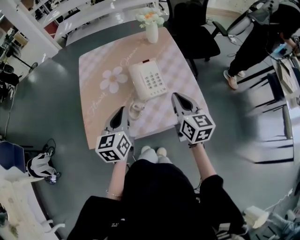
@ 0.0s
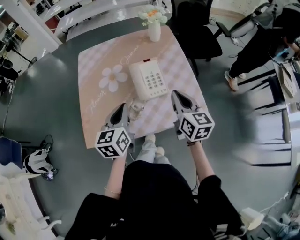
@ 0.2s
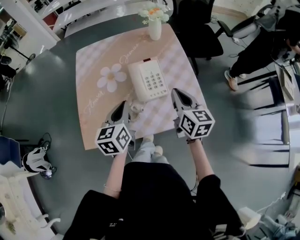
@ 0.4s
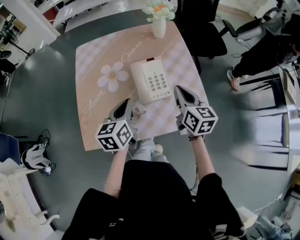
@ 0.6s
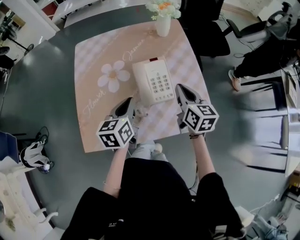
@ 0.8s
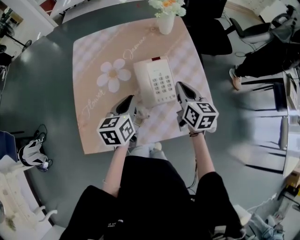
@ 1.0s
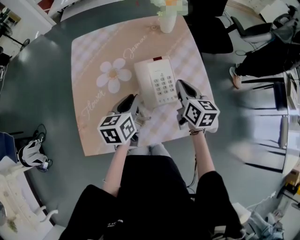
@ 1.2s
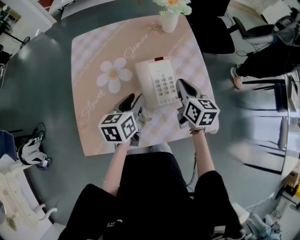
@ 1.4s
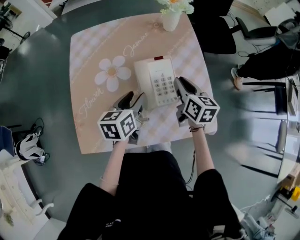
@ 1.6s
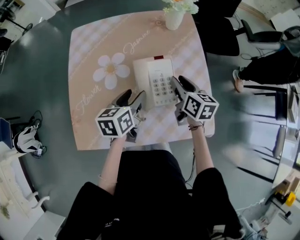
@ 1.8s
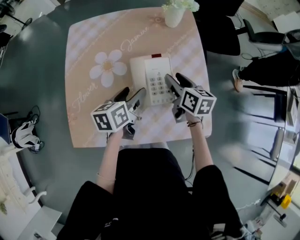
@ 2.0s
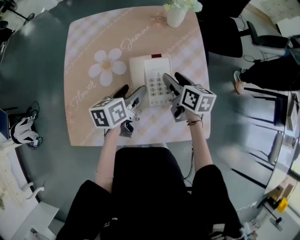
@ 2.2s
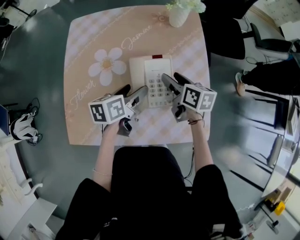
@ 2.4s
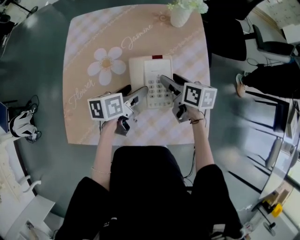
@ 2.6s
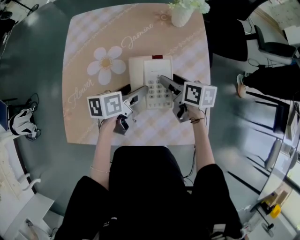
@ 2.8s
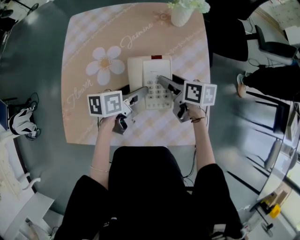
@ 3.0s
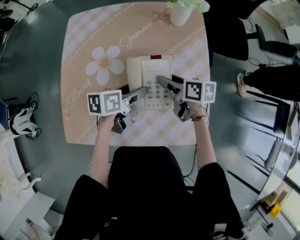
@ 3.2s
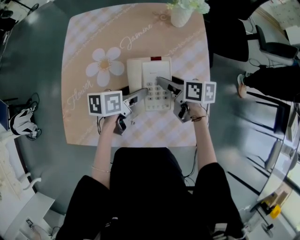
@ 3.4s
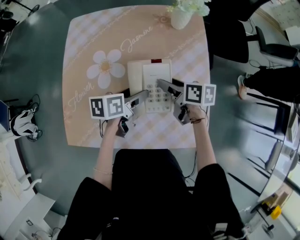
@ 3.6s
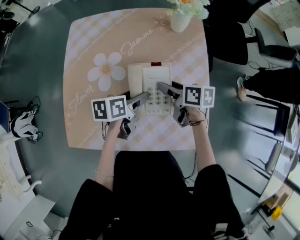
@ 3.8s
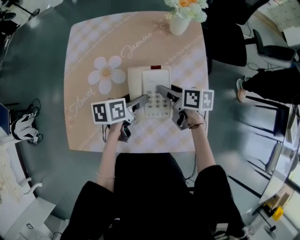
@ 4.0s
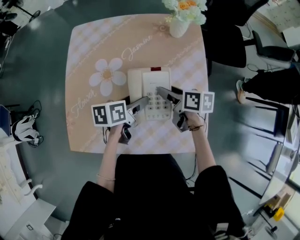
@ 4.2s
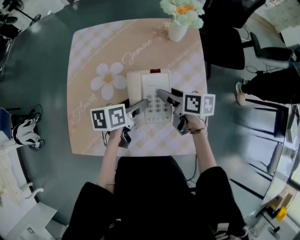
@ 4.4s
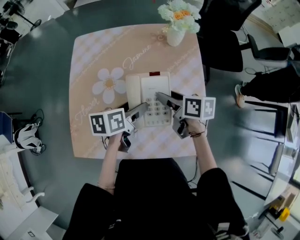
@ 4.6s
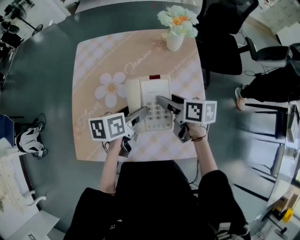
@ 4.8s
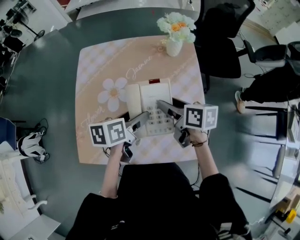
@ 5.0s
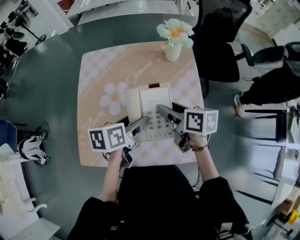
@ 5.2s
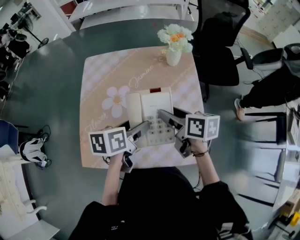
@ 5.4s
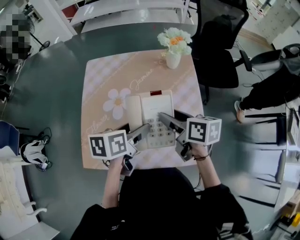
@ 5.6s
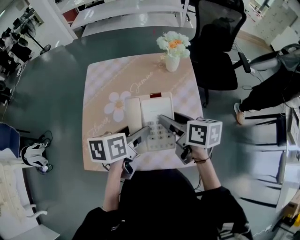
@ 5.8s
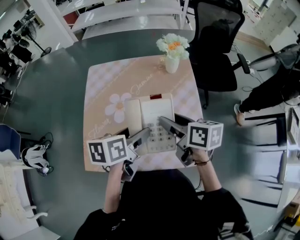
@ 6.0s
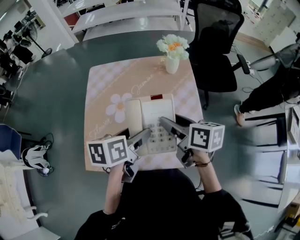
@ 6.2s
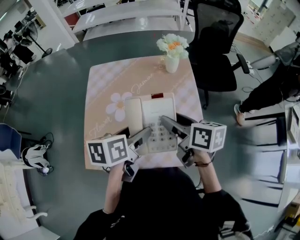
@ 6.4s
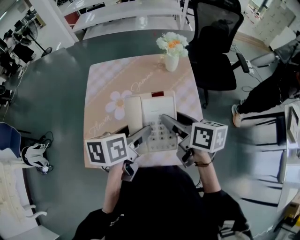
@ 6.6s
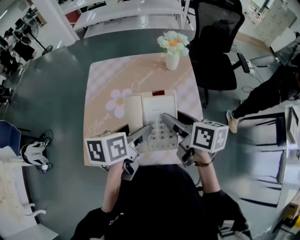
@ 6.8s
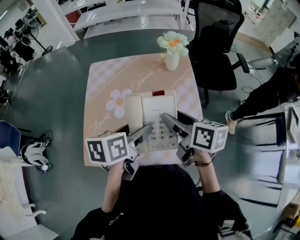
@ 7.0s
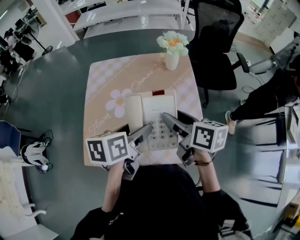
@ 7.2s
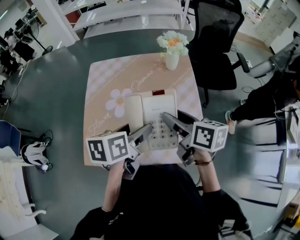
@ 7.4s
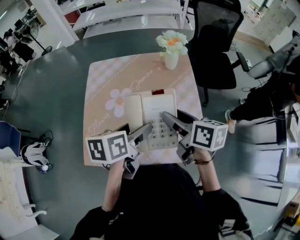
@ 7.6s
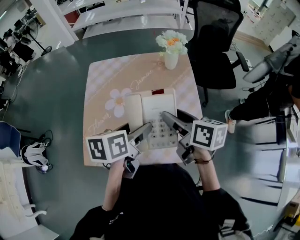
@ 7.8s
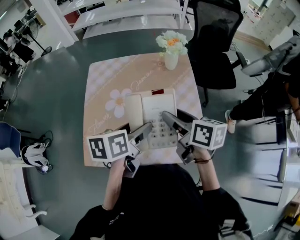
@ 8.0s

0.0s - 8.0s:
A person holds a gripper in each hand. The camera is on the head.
0.0s - 1.6s: The two grippers go about 20 cm forward and downward. The left gripper changes its angle by about 20 degrees, and opens up.
1.6s - 3.2s: Both grippers travel together downward, approximately 5 cm. The right gripper changes its angle by some 40 degrees, and opens; the left gripper turns by about 20 degrees, and opens.
3.2s - 4.8s: The two grippers go approximately 10 cm upward.
4.8s - 6.4s: The grippers both shift upward by some 5 cm.
6.4s - 8.0s: Both grippers stay about where they are.

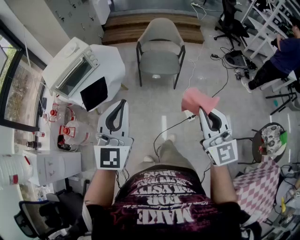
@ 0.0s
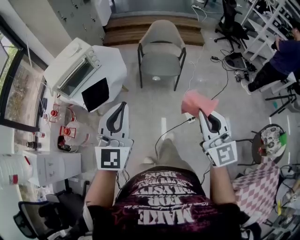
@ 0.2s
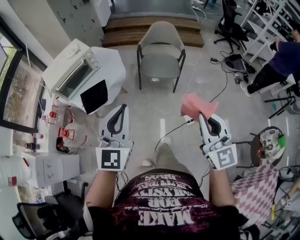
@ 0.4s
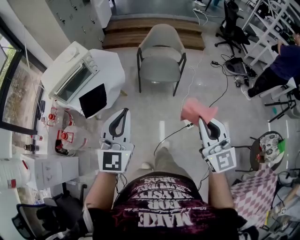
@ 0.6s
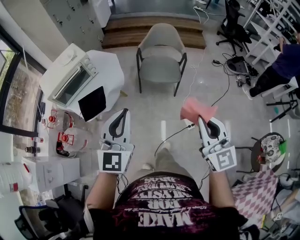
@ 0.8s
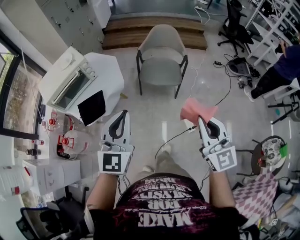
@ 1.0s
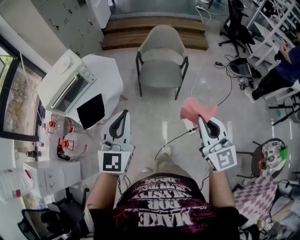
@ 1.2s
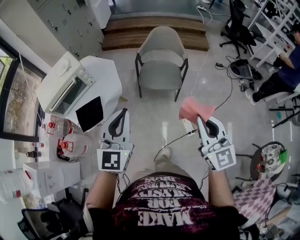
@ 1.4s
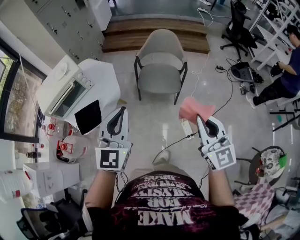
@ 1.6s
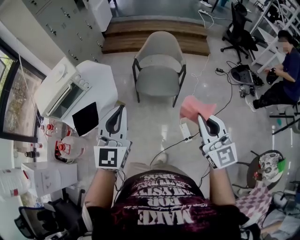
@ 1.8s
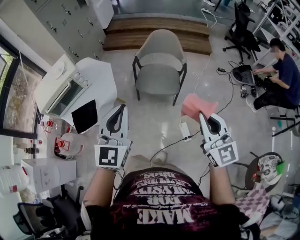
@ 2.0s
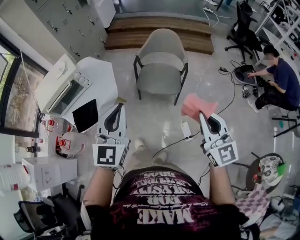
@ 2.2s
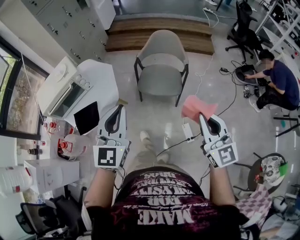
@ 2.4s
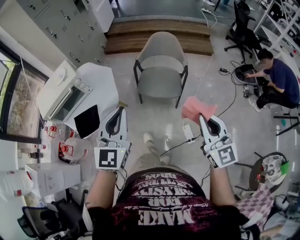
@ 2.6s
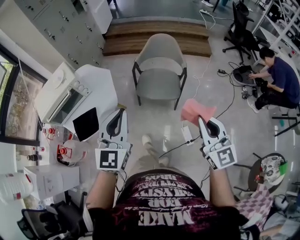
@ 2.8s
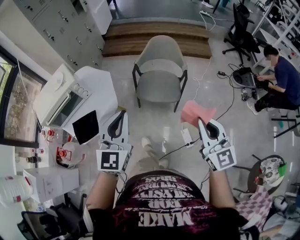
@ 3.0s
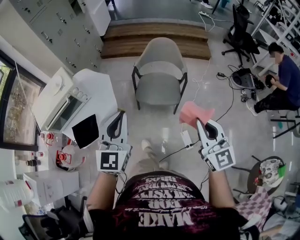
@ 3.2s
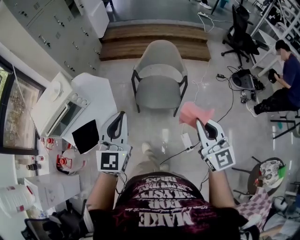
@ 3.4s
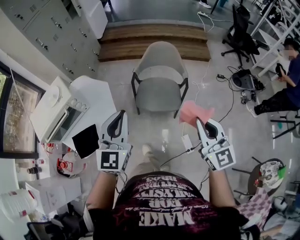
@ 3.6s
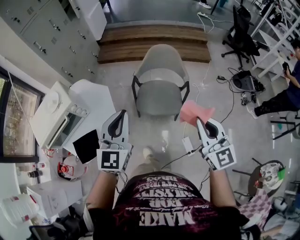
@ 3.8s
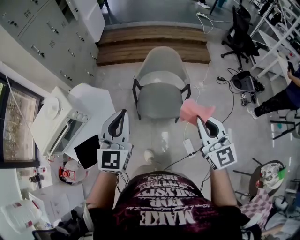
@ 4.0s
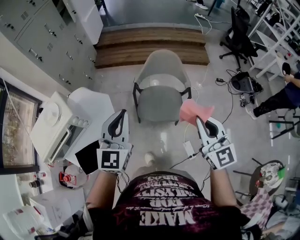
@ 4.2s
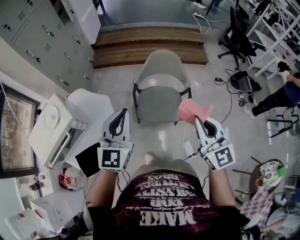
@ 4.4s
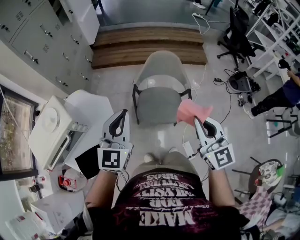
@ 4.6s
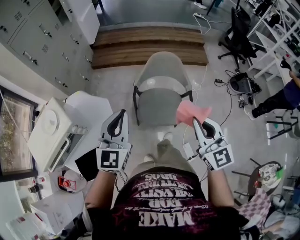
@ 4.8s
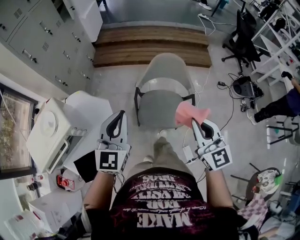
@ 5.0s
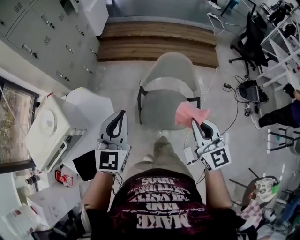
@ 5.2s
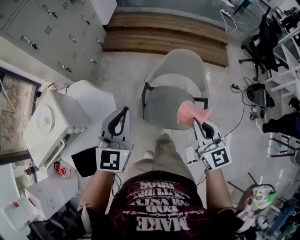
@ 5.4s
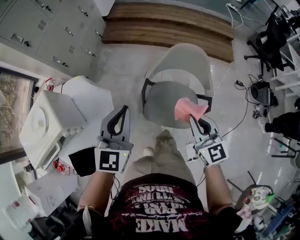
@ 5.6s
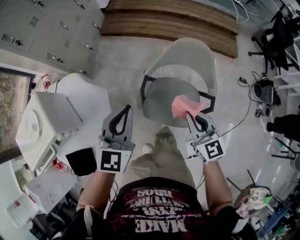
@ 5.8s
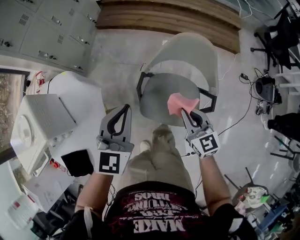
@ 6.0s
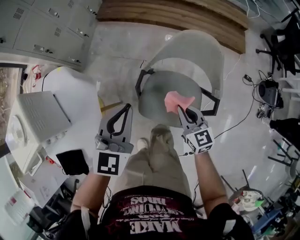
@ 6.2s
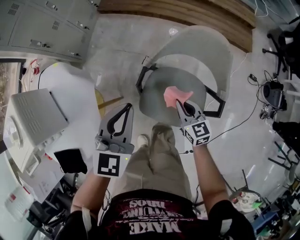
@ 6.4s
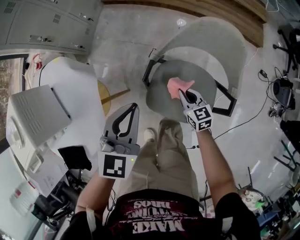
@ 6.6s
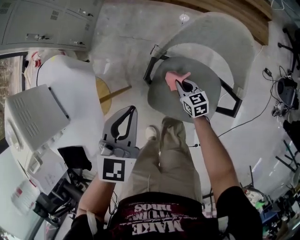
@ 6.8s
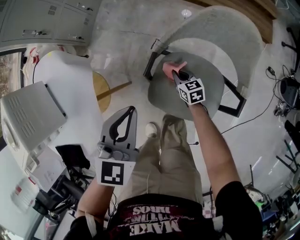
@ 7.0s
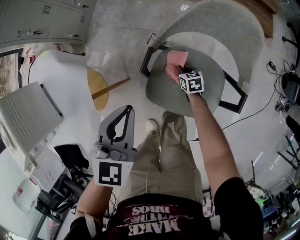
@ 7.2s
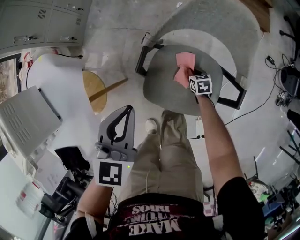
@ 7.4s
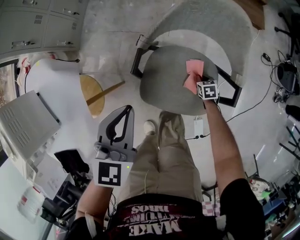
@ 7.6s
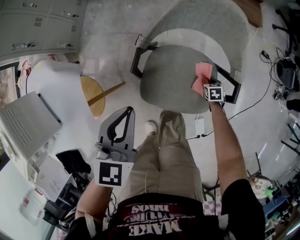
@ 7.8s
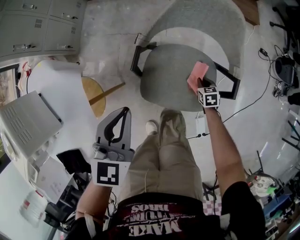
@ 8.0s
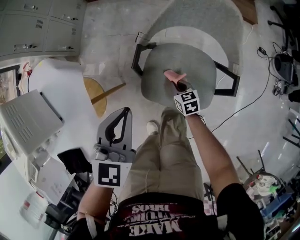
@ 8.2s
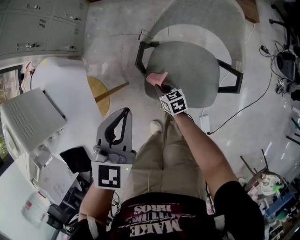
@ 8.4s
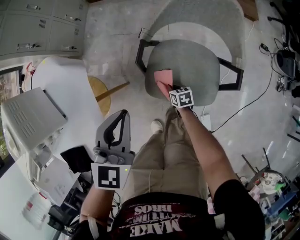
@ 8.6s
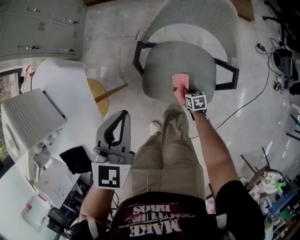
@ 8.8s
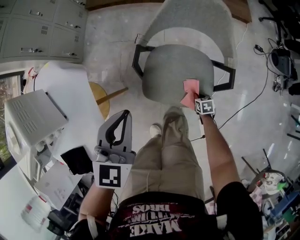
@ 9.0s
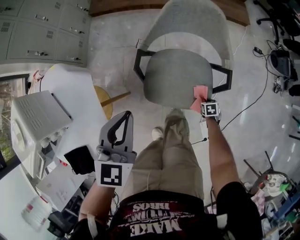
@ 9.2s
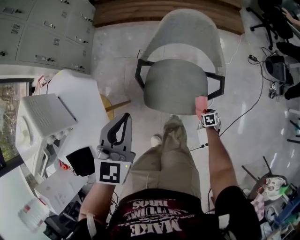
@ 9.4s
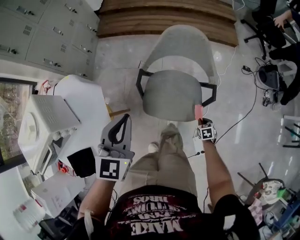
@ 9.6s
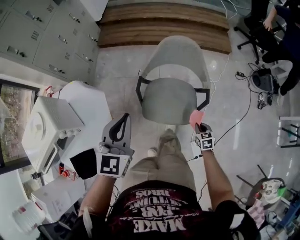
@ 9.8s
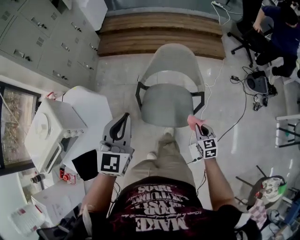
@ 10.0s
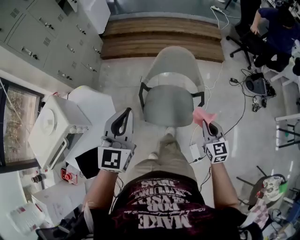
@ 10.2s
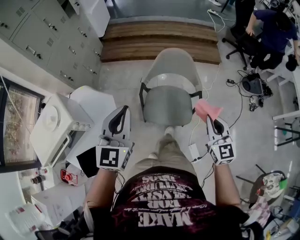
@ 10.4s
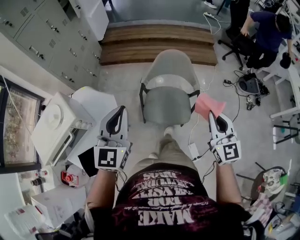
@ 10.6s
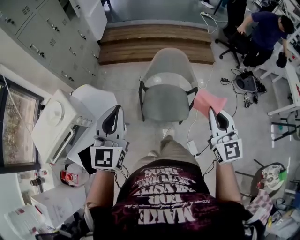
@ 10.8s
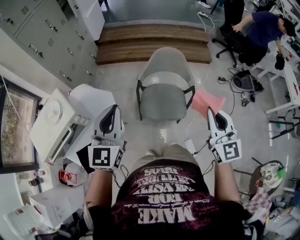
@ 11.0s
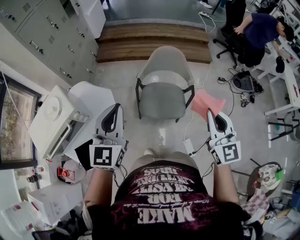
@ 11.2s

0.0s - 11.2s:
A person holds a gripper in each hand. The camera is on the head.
0.0s - 1.6s: The left gripper shifts roughly 20 cm forward. Meanwhile the right gripper heads forward and to the right, covering some 20 cm.
1.6s - 3.2s: The grippers both shift forward by about 10 cm.
3.2s - 4.8s: Both grippers travel together forward, approximately 25 cm.
4.8s - 6.4s: The right gripper is displaced downward and forward by about 50 cm, and changes its angle by some 30 degrees. The left gripper shifts approximately 30 cm downward and forward, and changes its angle by about 20 degrees.
6.4s - 8.0s: The left gripper shifts some 5 cm downward. Meanwhile the right gripper shifts roughly 30 cm downward and to the right, and tips its fingers downward by about 30 degrees.
8.0s - 9.6s: The right gripper goes up and down, roughly 10 cm each way, reversing 2 times. Meanwhile the left gripper is displaced upward by some 15 cm.
9.6s - 11.2s: The left gripper heads upward and backward, covering some 25 cm. Meanwhile the right gripper moves upward, about 60 cm, and angles its fingers upward, by roughly 60 degrees.

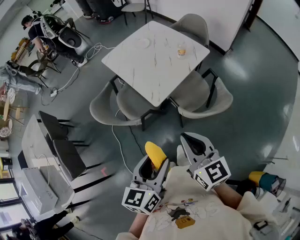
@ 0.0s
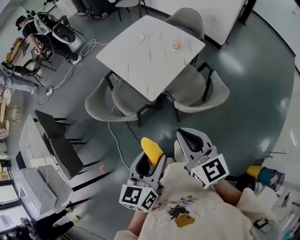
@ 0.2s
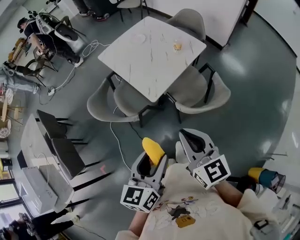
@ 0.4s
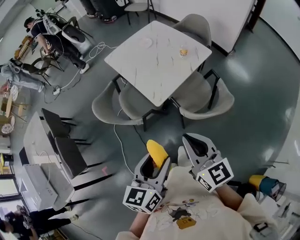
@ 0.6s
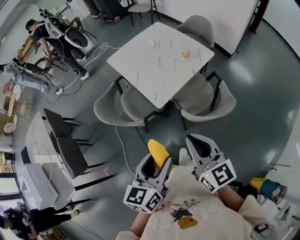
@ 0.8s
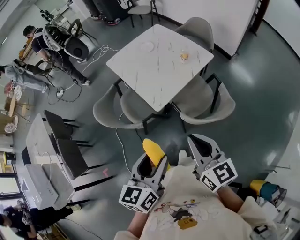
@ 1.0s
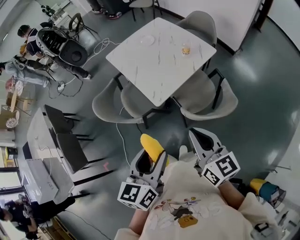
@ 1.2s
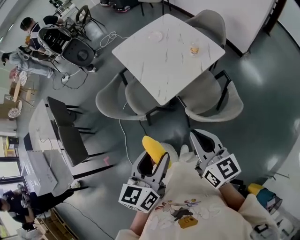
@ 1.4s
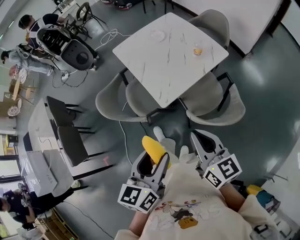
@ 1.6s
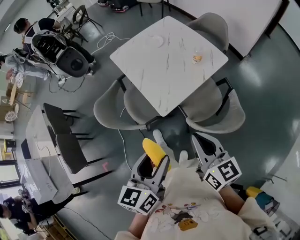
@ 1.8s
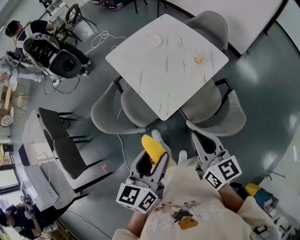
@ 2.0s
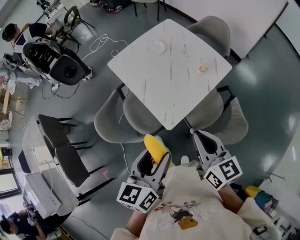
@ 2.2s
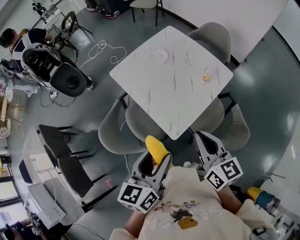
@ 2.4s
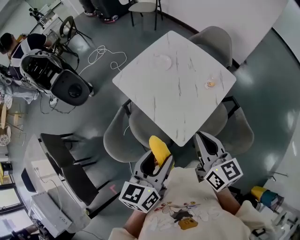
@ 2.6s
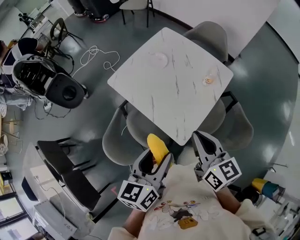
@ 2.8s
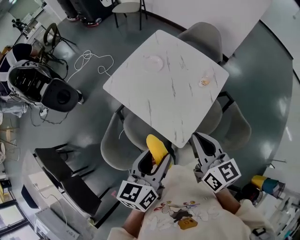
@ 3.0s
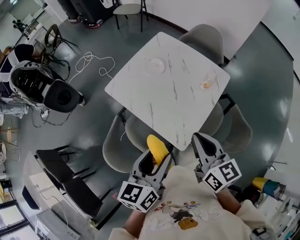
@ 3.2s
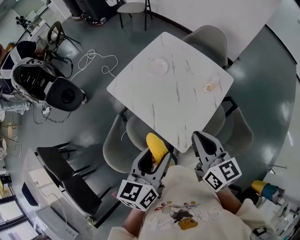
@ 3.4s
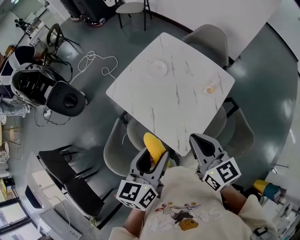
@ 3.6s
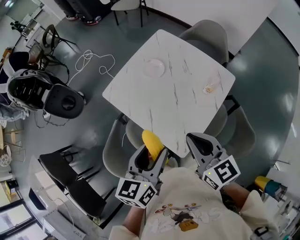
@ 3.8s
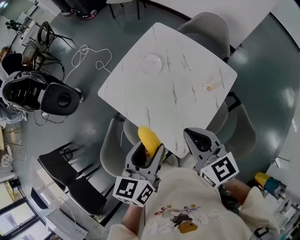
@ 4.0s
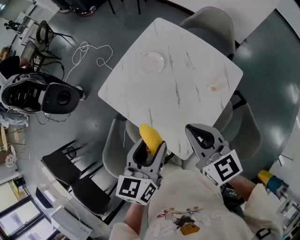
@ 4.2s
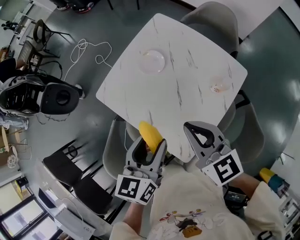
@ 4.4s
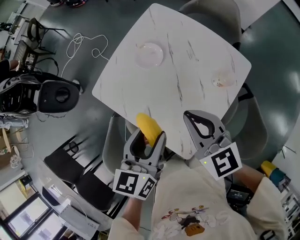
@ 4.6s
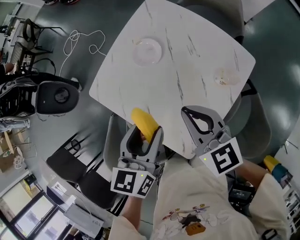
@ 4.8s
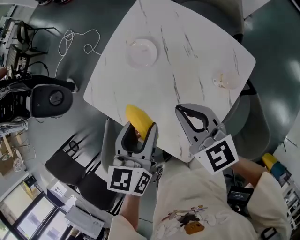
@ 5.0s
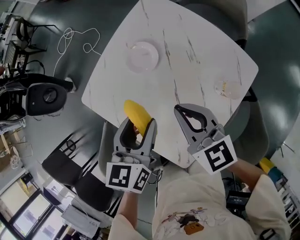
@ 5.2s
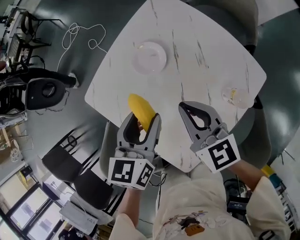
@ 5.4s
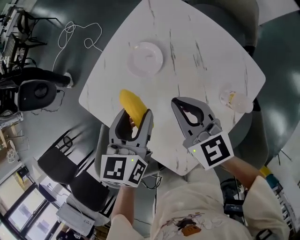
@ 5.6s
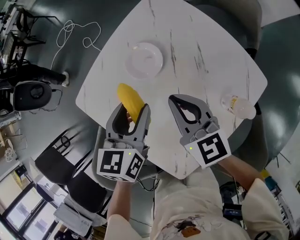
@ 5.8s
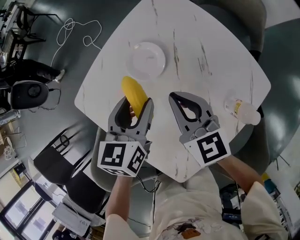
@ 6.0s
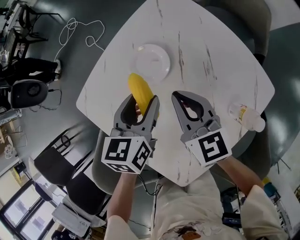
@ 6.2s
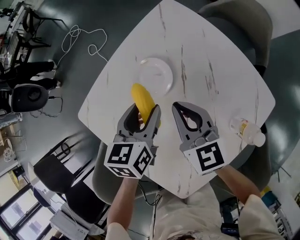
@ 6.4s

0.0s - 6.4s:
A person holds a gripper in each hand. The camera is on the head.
0.0s - 1.6s: The left gripper shifts roughly 10 cm forward. The right gripper heads forward and to the right, covering some 10 cm.
1.6s - 3.2s: The two grippers go some 30 cm forward and to the left.
3.2s - 4.8s: The two grippers go roughly 25 cm forward and downward.
4.8s - 6.4s: Both grippers travel together forward and downward, some 25 cm.
